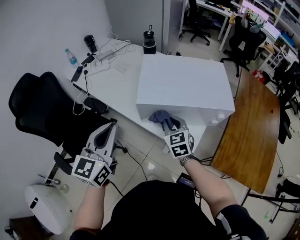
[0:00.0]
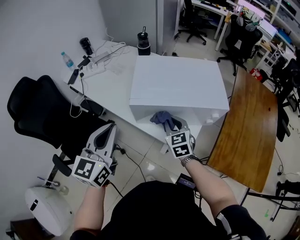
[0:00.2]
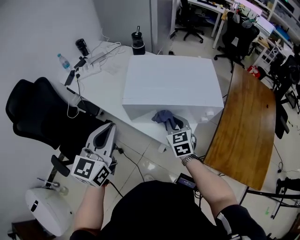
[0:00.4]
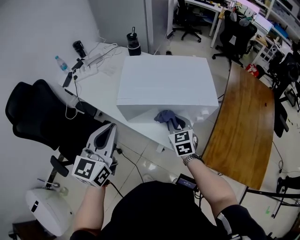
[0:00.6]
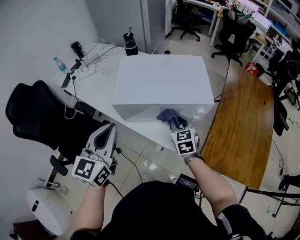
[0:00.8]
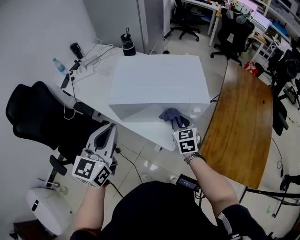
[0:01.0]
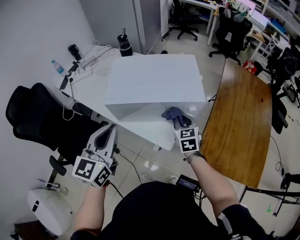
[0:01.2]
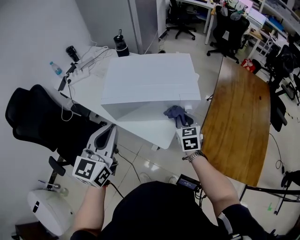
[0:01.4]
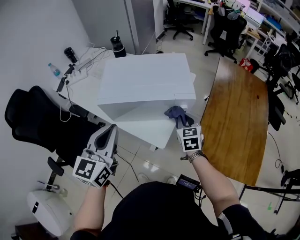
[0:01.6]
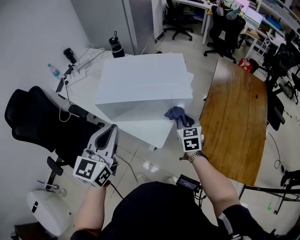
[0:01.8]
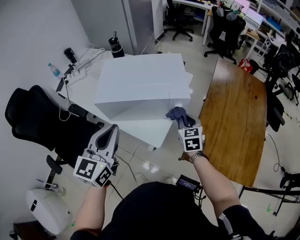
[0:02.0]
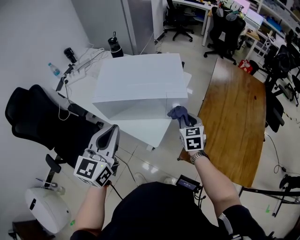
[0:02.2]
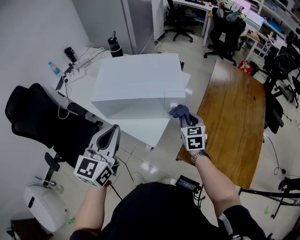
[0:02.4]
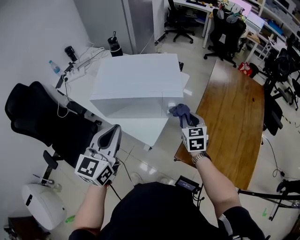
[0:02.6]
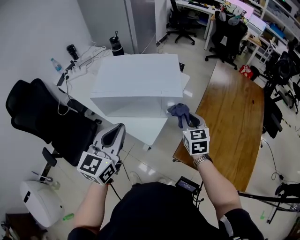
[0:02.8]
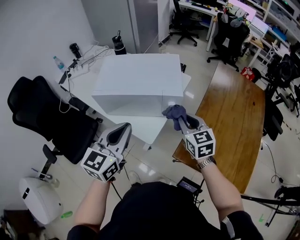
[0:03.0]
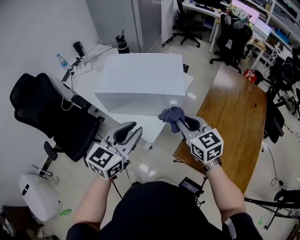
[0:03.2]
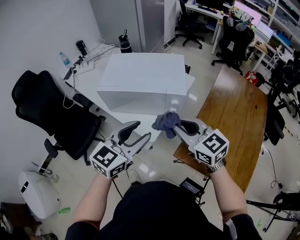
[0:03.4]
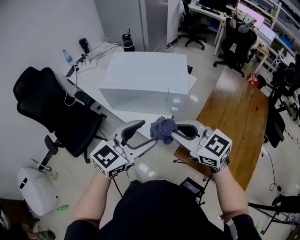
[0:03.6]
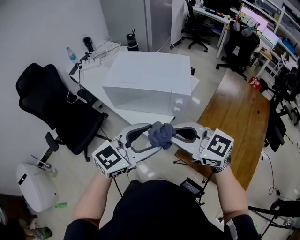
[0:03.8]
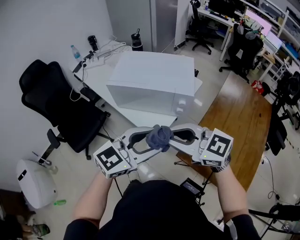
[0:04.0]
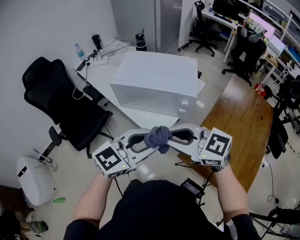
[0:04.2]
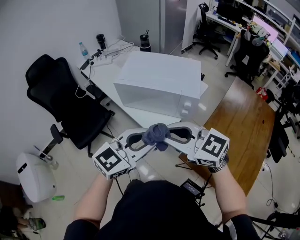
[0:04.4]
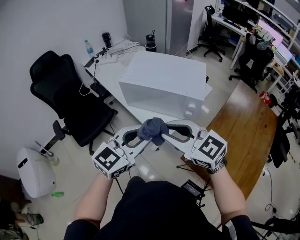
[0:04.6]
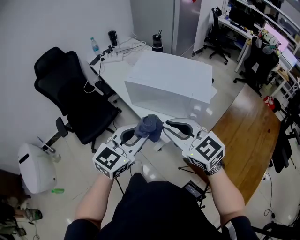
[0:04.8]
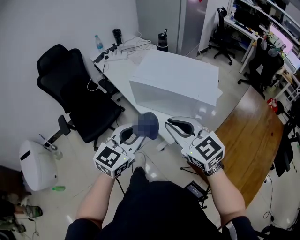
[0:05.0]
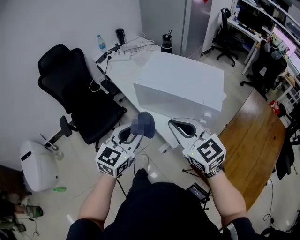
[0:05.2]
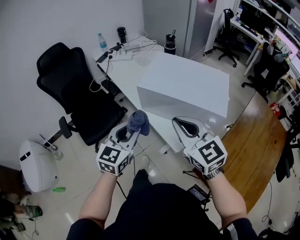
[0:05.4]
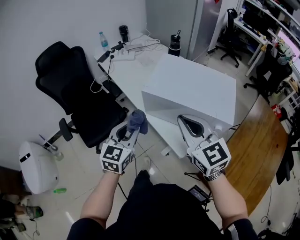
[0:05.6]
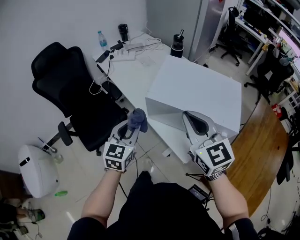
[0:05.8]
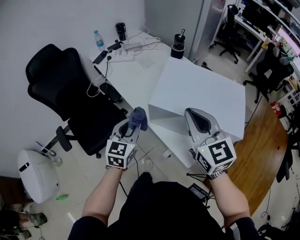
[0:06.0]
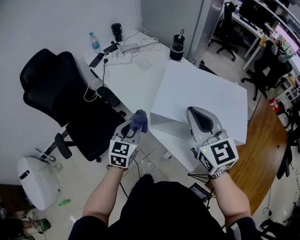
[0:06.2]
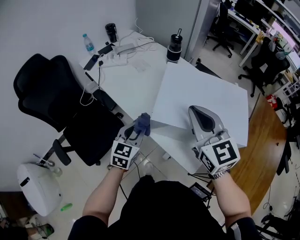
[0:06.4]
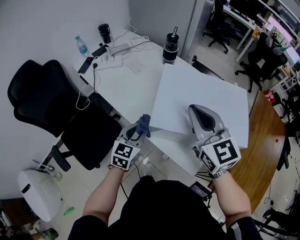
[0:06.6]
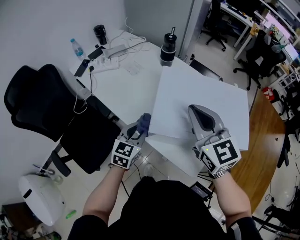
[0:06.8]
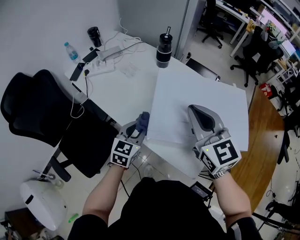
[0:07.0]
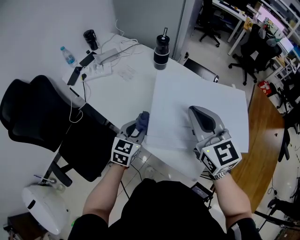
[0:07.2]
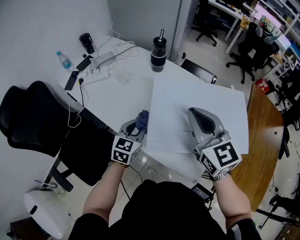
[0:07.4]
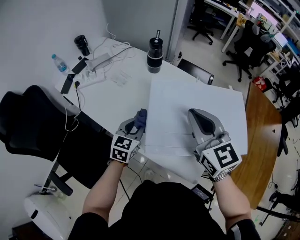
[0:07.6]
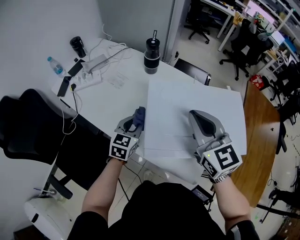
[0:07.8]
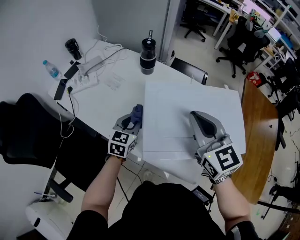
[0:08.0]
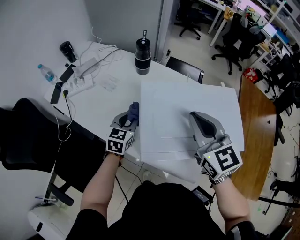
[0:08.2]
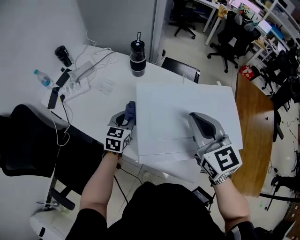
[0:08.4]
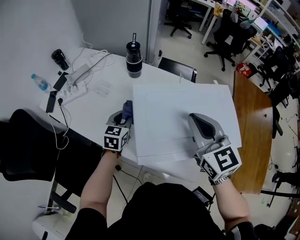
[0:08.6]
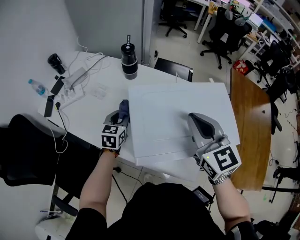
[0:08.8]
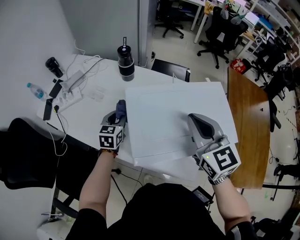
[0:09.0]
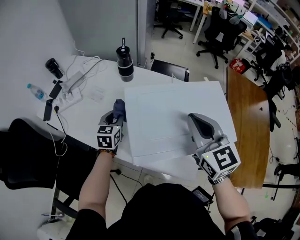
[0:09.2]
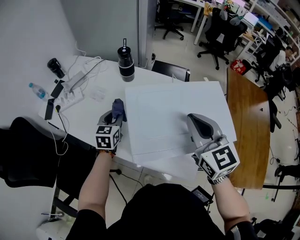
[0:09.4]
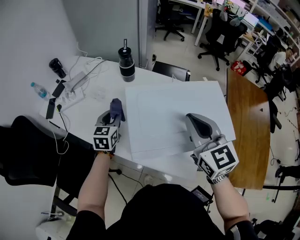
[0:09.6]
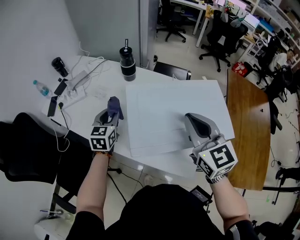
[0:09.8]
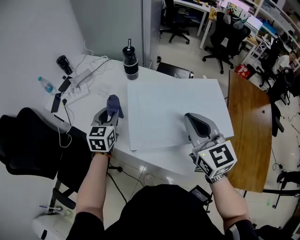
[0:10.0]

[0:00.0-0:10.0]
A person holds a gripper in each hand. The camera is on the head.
0:00.0 to 0:01.4: Both grippers move to the right, approximately 20 cm.
0:01.4 to 0:02.8: The right gripper is displaced to the right and upward by some 10 cm, while the left gripper heads to the right, covering approximately 10 cm.
0:02.8 to 0:04.2: The right gripper ends up about 25 cm from where it was, and changes its angle by roughly 70 degrees, while the left gripper moves about 15 cm, turns by roughly 30 degrees, and opens its fingers.
0:04.2 to 0:05.8: The right gripper changes place by approximately 25 cm, and swivels about 30 degrees; the left gripper shifts by approximately 35 cm, and changes its angle by roughly 50 degrees.
0:05.8 to 0:07.2: The right gripper heads forward, covering approximately 20 cm; the left gripper moves forward and downward, about 20 cm, and changes its angle by about 20 degrees.
0:07.2 to 0:08.6: The right gripper is displaced to the right by roughly 5 cm; the left gripper is displaced forward by some 15 cm.
0:08.6 to 0:10.0: The right gripper goes roughly 5 cm backward. Meanwhile the left gripper travels upward by some 10 cm.

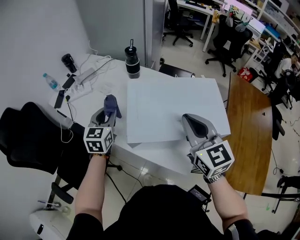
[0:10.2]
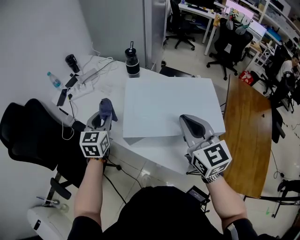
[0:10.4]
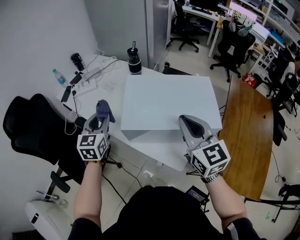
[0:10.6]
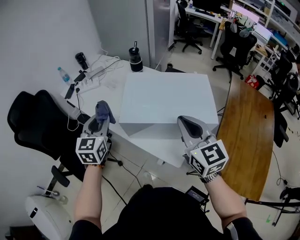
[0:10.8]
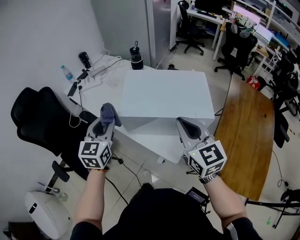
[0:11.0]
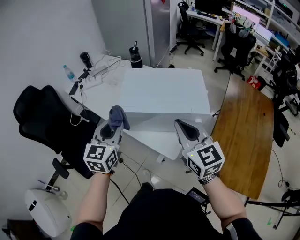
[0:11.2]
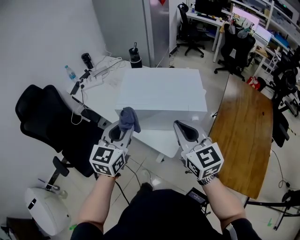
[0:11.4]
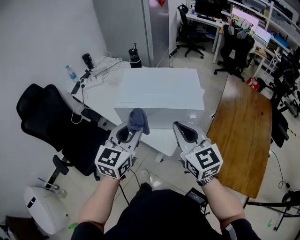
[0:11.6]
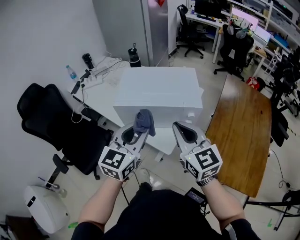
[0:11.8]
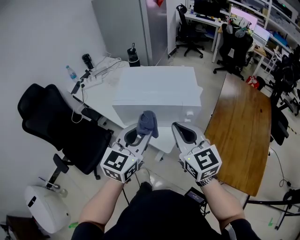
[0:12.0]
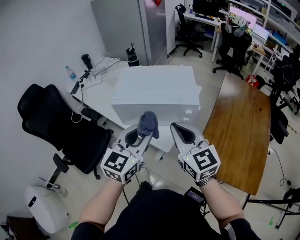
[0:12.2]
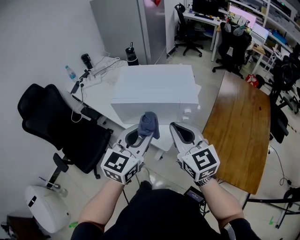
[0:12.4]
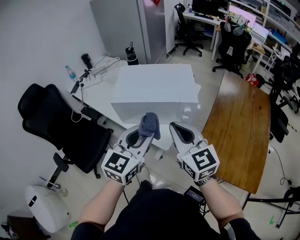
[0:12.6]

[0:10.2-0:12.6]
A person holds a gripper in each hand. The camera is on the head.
0:10.2 to 0:11.4: The right gripper is displaced backward by approximately 20 cm, while the left gripper goes about 30 cm backward and to the right.
0:11.4 to 0:12.6: The left gripper goes about 15 cm to the right and backward; the right gripper heads backward, covering approximately 5 cm.

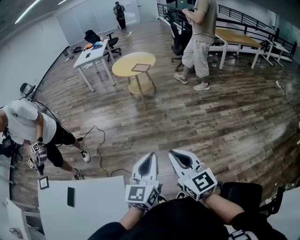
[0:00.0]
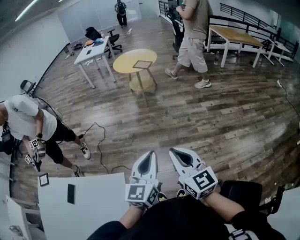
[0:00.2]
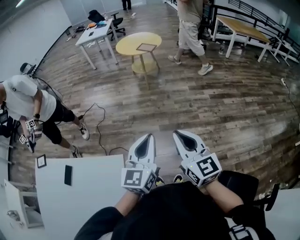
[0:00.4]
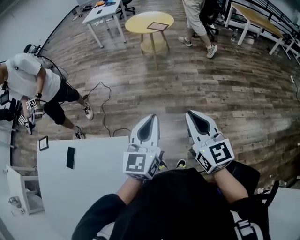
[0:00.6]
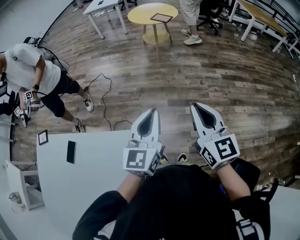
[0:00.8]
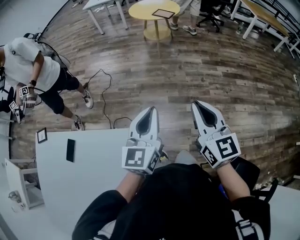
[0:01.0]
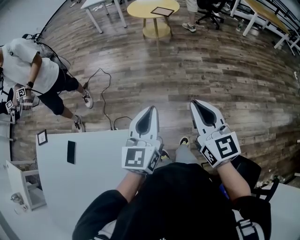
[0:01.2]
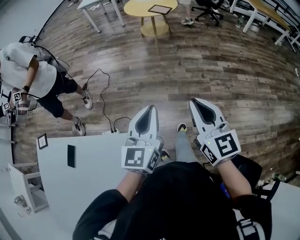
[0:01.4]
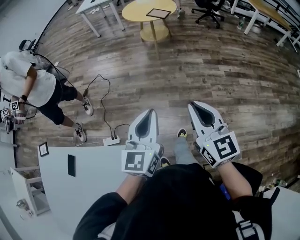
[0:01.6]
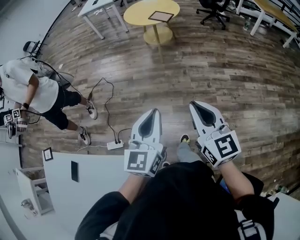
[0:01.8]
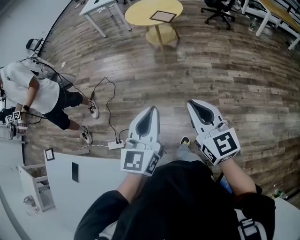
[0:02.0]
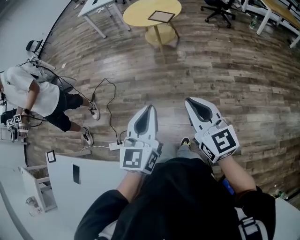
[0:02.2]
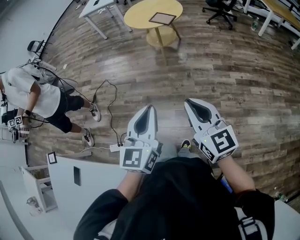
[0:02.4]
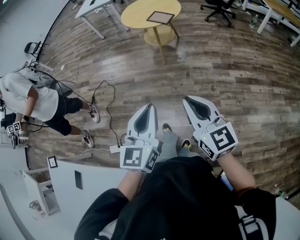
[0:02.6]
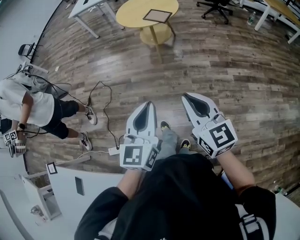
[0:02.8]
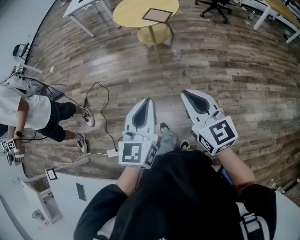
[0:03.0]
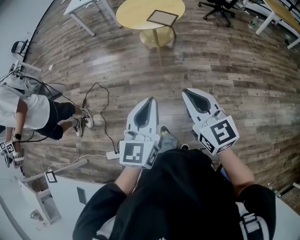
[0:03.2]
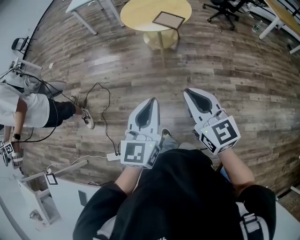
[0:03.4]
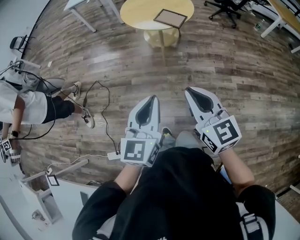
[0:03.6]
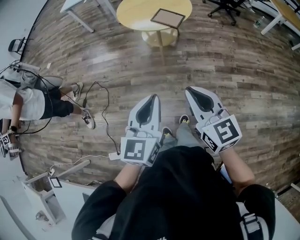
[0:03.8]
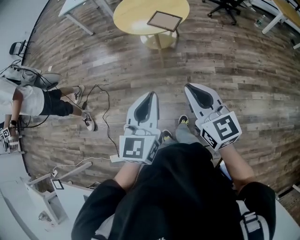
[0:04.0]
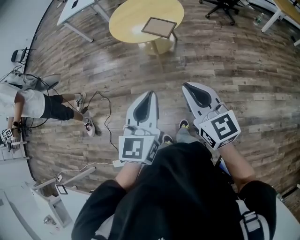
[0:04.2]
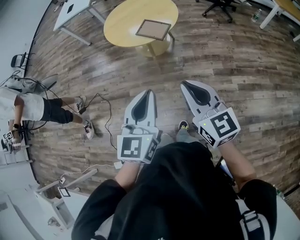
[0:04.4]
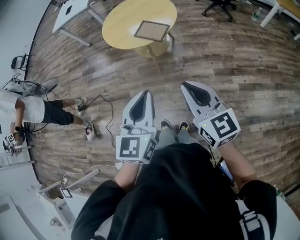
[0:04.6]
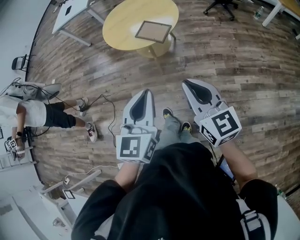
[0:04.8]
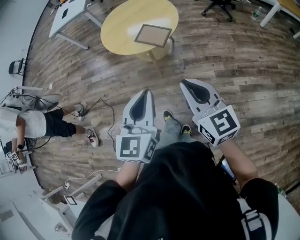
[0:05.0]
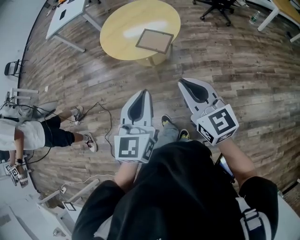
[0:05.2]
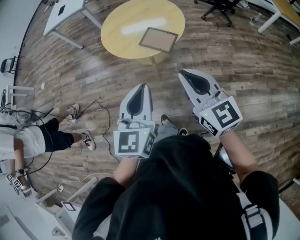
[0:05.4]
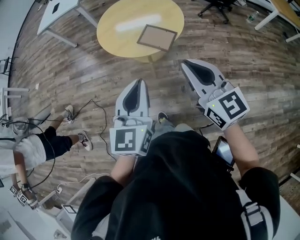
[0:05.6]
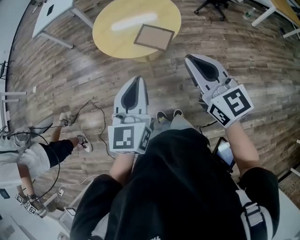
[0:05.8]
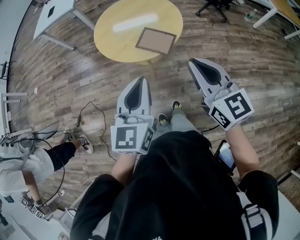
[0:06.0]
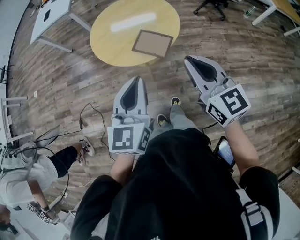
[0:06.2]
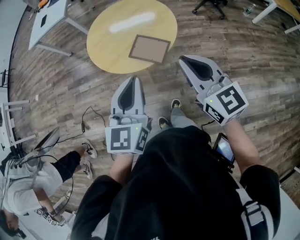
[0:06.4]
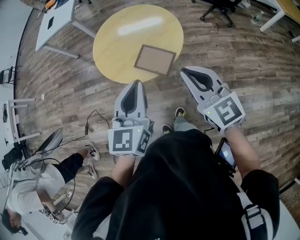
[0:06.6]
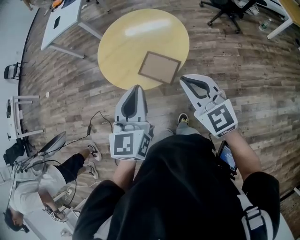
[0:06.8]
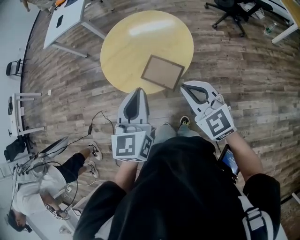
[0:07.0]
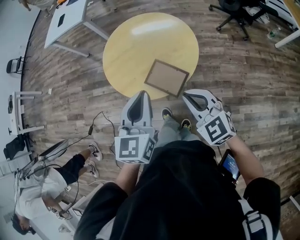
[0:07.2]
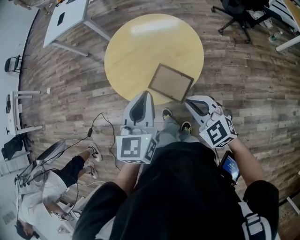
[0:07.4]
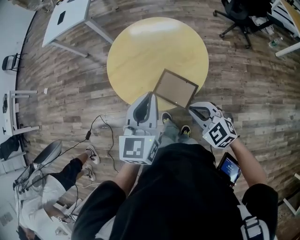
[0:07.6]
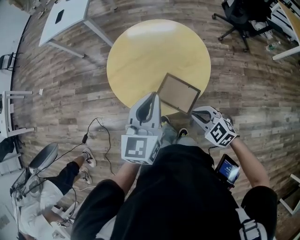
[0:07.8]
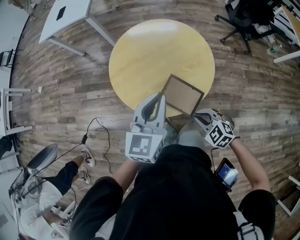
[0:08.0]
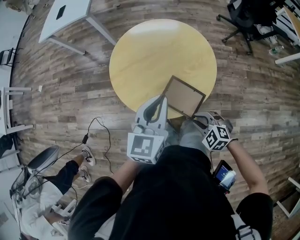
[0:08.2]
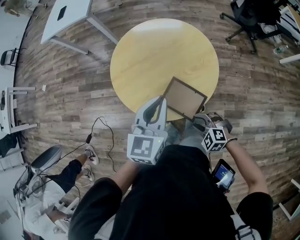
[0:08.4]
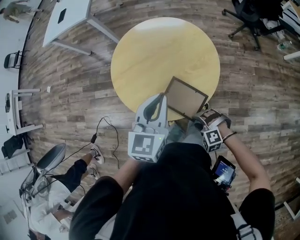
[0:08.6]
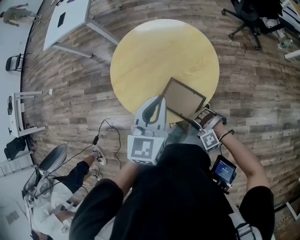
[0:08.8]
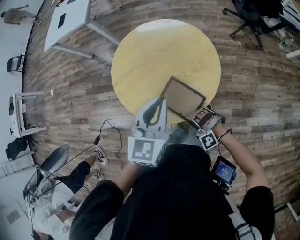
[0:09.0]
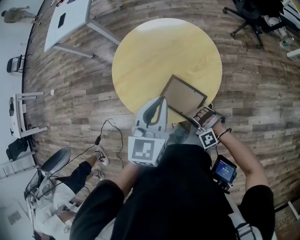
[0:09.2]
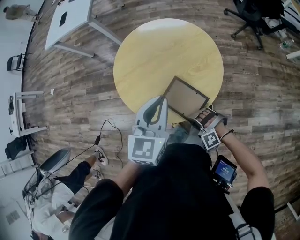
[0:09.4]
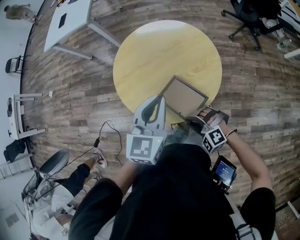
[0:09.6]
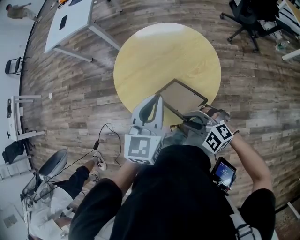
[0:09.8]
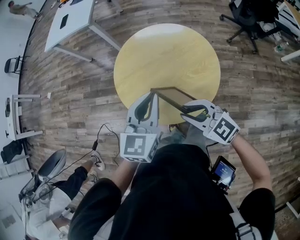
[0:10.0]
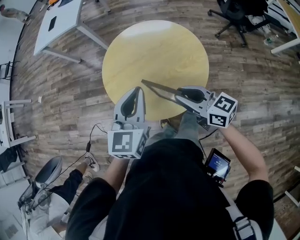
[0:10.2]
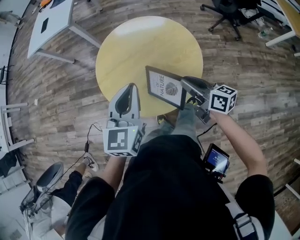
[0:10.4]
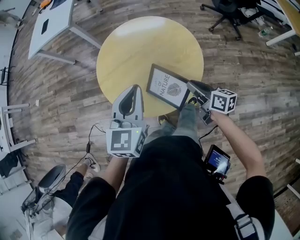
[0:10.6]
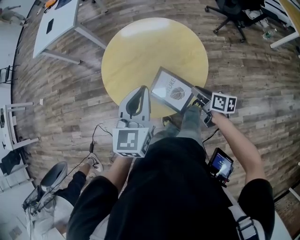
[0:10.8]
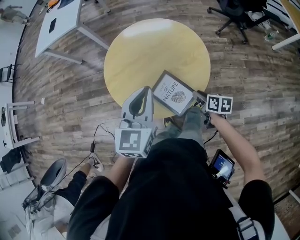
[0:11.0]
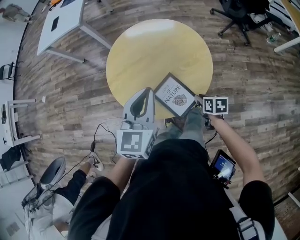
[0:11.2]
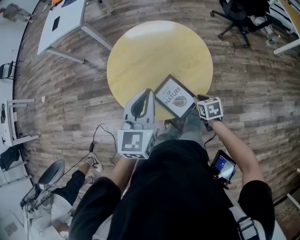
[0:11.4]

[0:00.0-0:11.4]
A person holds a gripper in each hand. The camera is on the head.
0:00.0 to 0:01.4: The left gripper goes roughly 10 cm forward and to the left. The right gripper heads forward, covering roughly 10 cm.
0:01.4 to 0:02.8: Both grippers travel together forward, approximately 30 cm.
0:02.8 to 0:04.2: The two grippers go some 30 cm forward.
0:04.2 to 0:05.6: Both grippers travel together forward, approximately 25 cm.
0:05.6 to 0:07.2: The right gripper moves forward and downward, about 25 cm, and changes its angle by roughly 30 degrees. The left gripper goes approximately 25 cm forward.
0:07.2 to 0:08.6: The right gripper travels downward by approximately 25 cm, angles its fingers downward, by roughly 40 degrees, and opens its fingers. The left gripper travels forward and downward by about 15 cm.
0:08.6 to 0:10.0: The right gripper is displaced upward and forward by about 25 cm, and tips its fingers upward by some 40 degrees.
0:10.0 to 0:11.4: The right gripper moves downward and to the right, roughly 25 cm, and tips its fingers downward by approximately 40 degrees.
